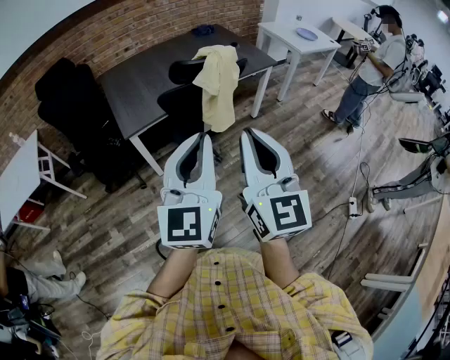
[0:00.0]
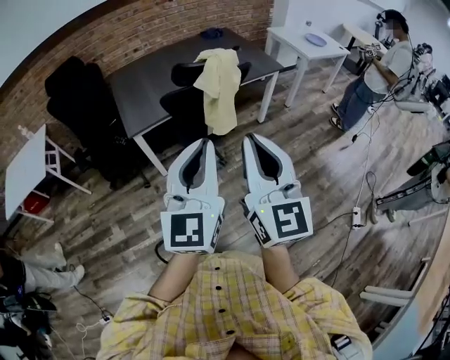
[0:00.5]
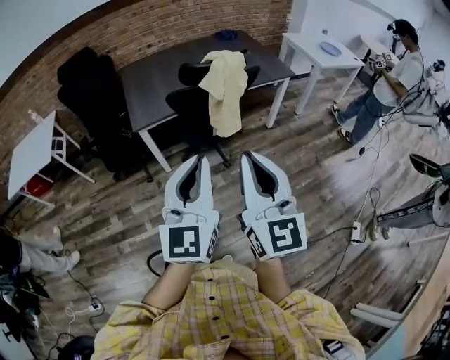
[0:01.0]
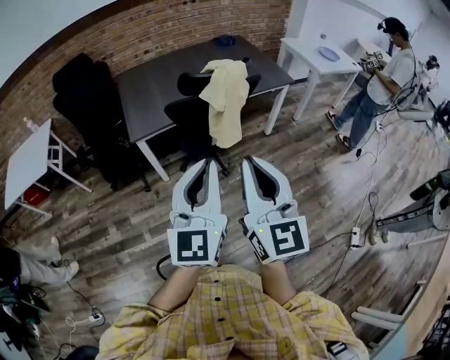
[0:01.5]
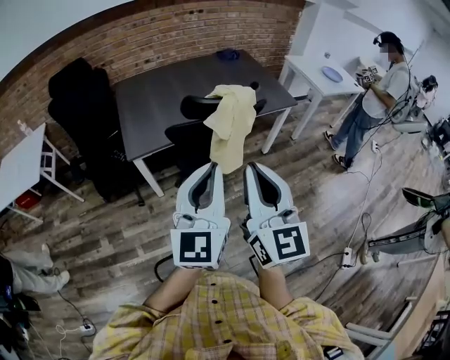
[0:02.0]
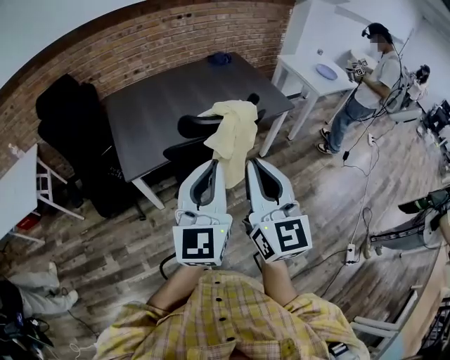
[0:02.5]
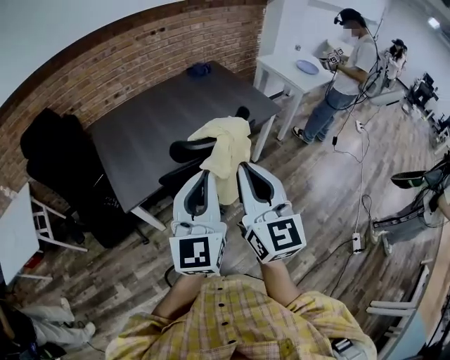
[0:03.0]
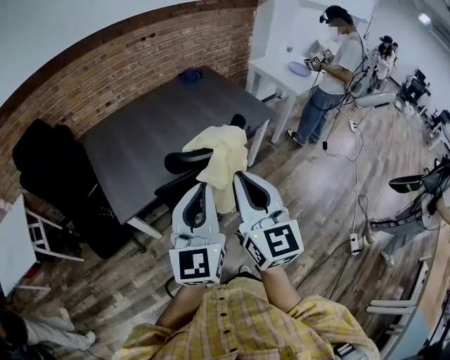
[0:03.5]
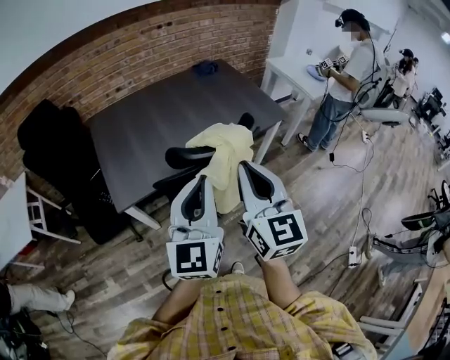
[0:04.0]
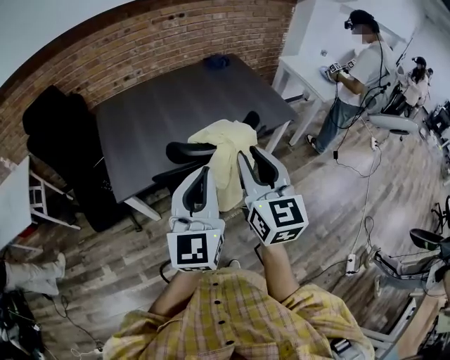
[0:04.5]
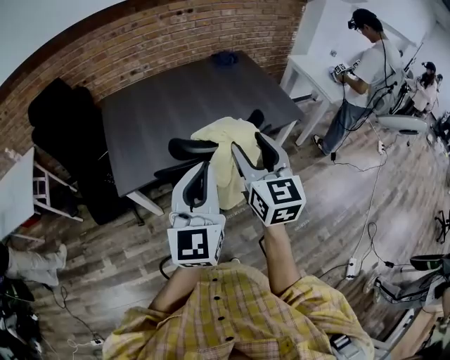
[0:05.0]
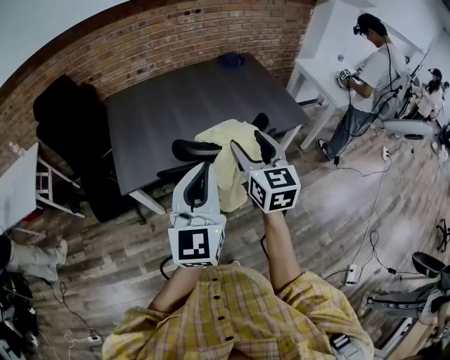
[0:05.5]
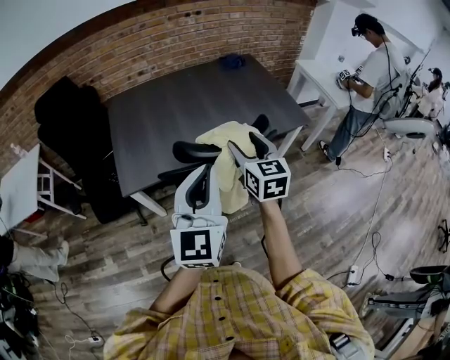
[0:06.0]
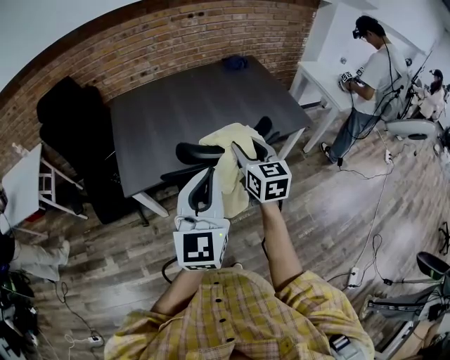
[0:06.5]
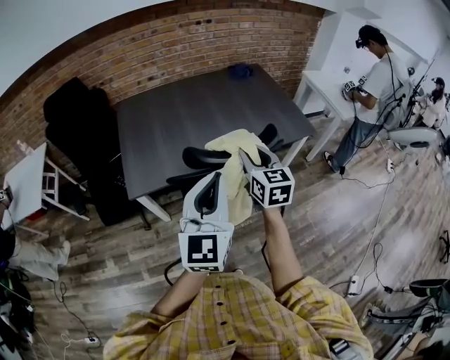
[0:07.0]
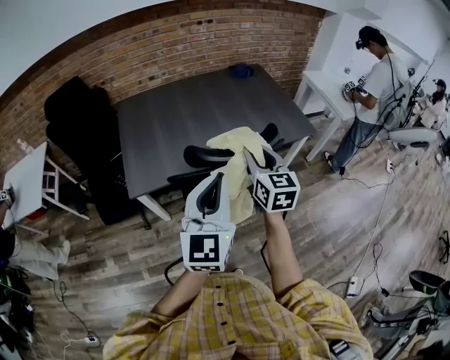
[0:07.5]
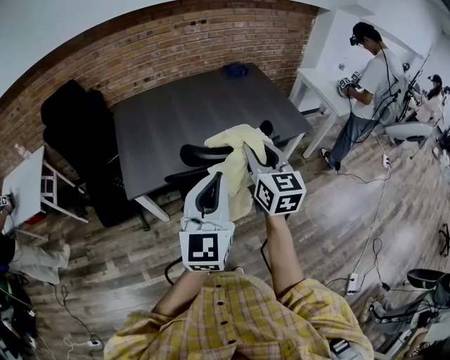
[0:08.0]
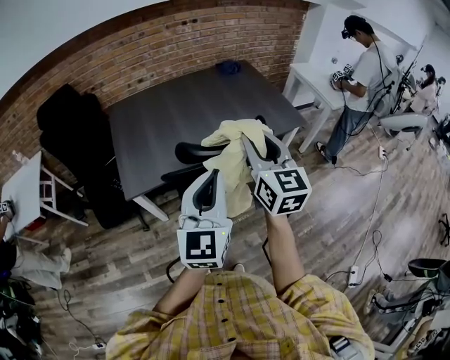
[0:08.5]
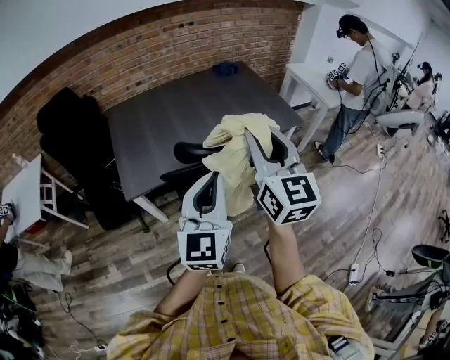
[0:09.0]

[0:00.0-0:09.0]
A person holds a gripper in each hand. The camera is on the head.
0:00.0 to 0:02.0: Both grippers move forward, roughly 10 cm.
0:02.0 to 0:04.5: The grippers both shift forward by some 25 cm.
0:04.5 to 0:07.0: The right gripper shifts some 15 cm downward and forward, and opens, then closes once more.
0:07.0 to 0:09.0: The right gripper is displaced upward and backward by approximately 20 cm, and changes its angle by some 20 degrees.

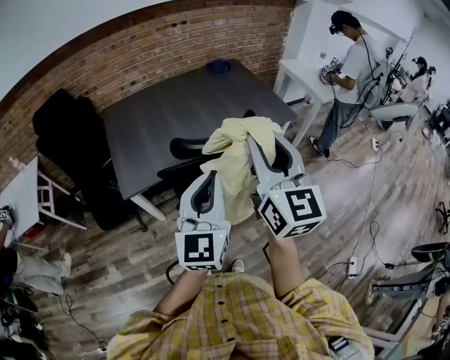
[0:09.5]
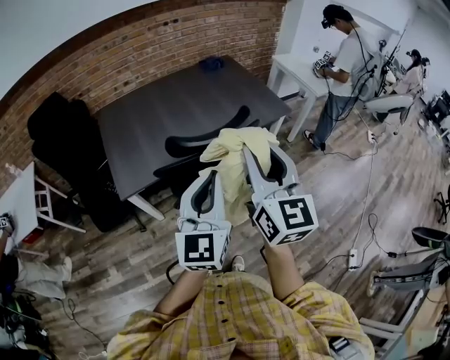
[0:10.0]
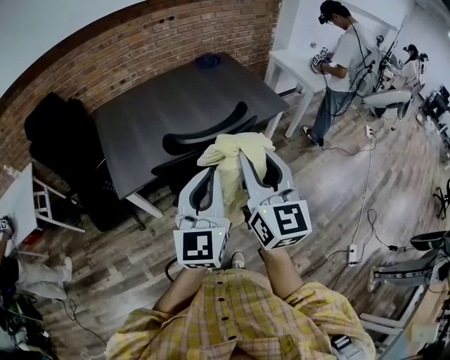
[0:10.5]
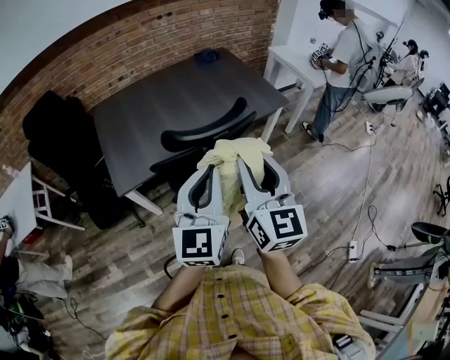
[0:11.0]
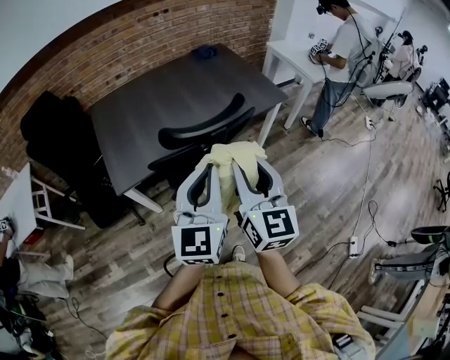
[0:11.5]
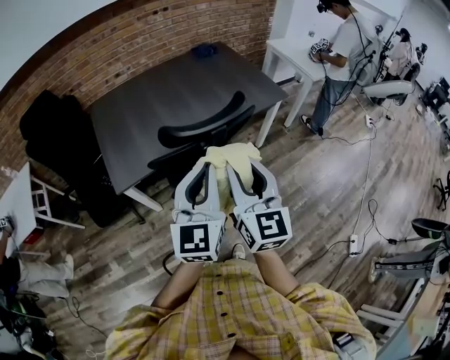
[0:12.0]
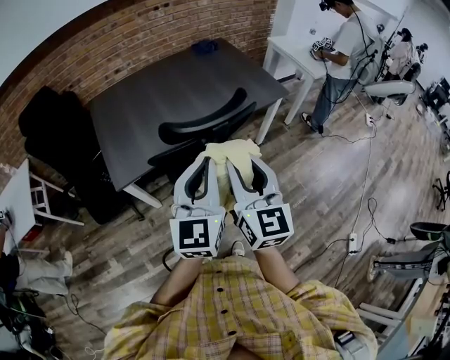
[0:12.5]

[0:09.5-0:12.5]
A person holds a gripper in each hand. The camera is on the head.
0:09.5 to 0:11.0: The right gripper heads downward, covering approximately 5 cm.
0:11.0 to 0:12.5: The grippers stay close to where they were, moving slightly.

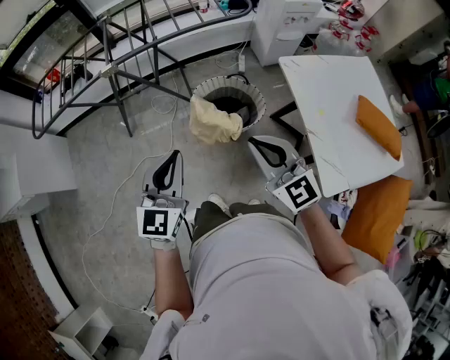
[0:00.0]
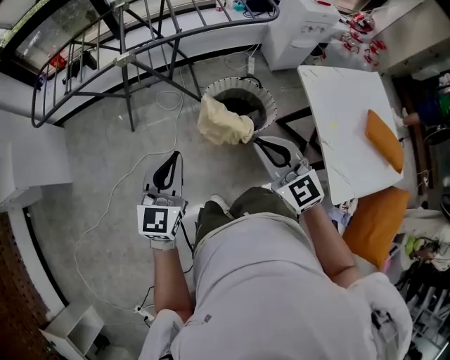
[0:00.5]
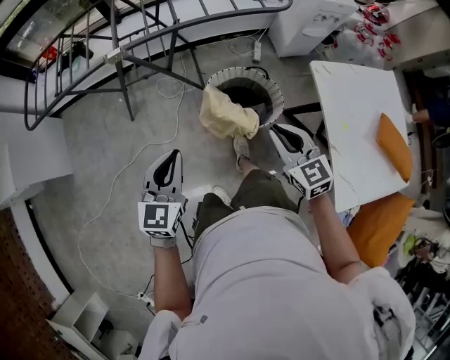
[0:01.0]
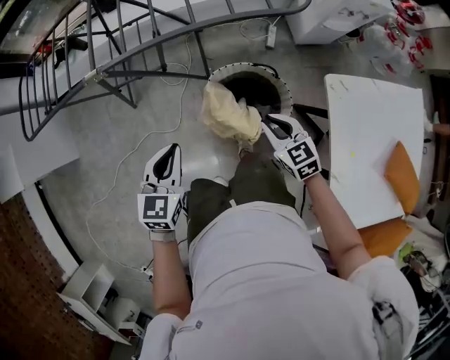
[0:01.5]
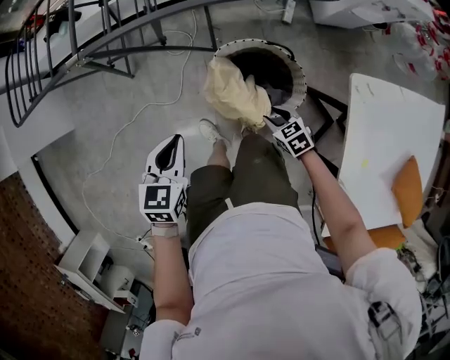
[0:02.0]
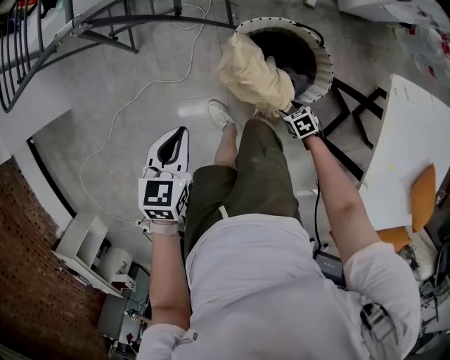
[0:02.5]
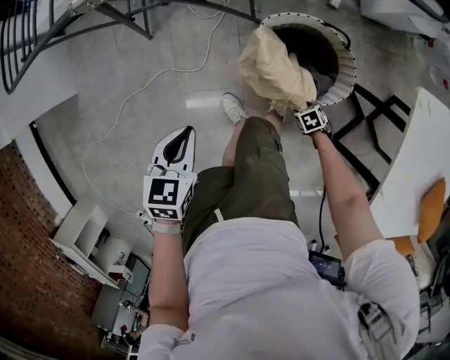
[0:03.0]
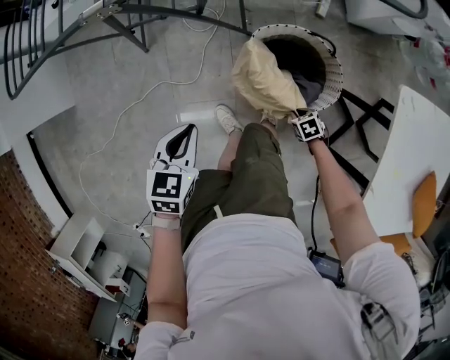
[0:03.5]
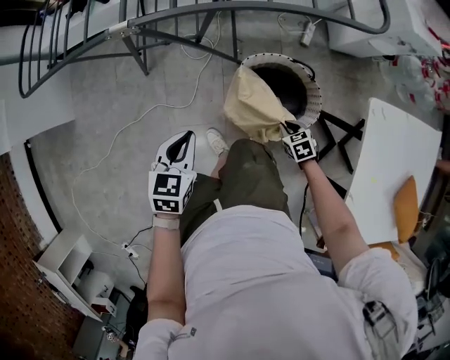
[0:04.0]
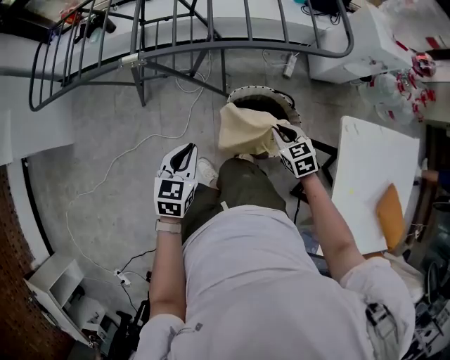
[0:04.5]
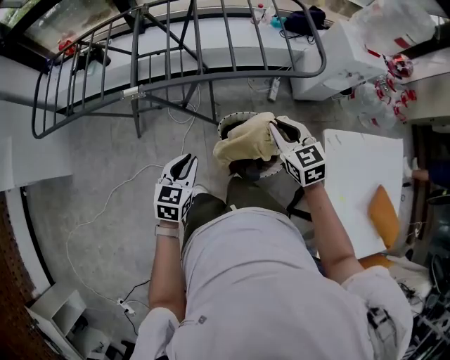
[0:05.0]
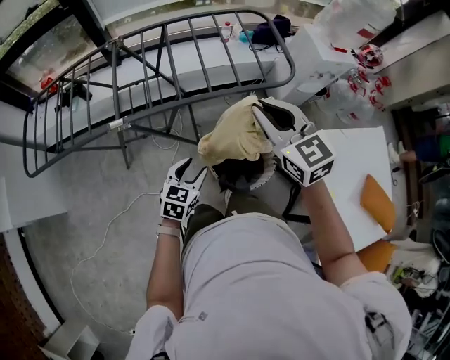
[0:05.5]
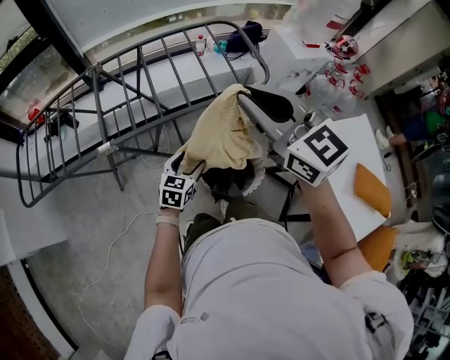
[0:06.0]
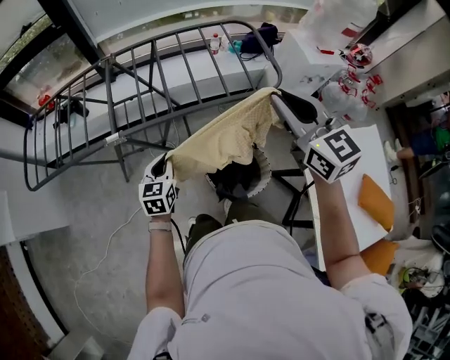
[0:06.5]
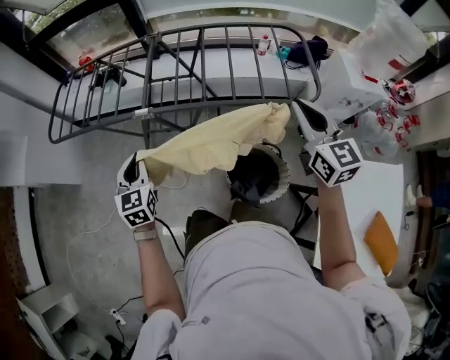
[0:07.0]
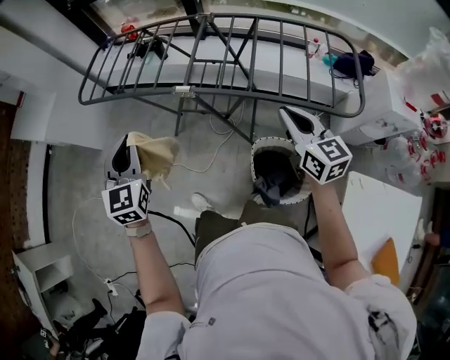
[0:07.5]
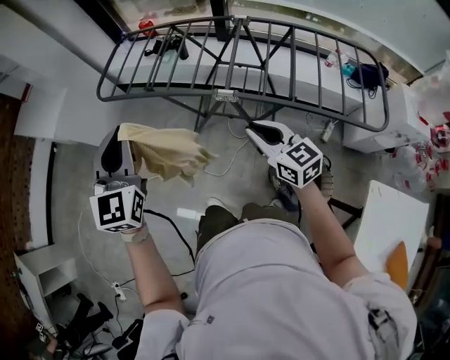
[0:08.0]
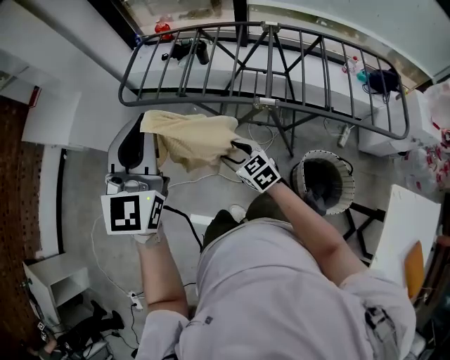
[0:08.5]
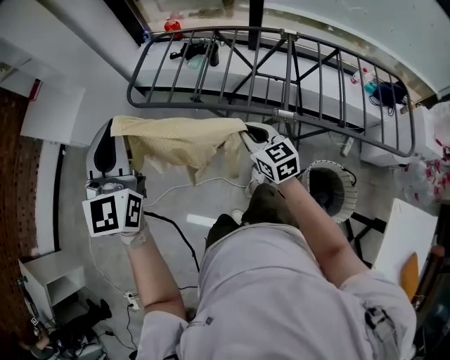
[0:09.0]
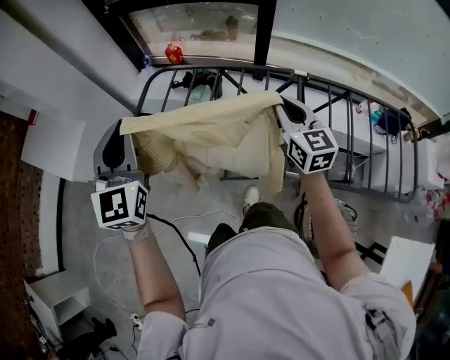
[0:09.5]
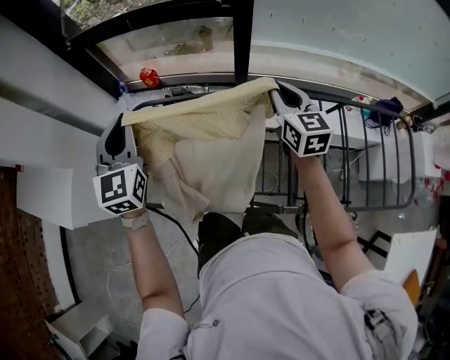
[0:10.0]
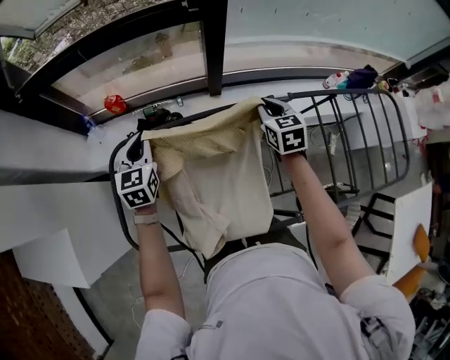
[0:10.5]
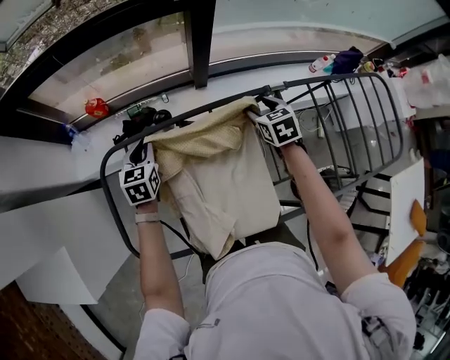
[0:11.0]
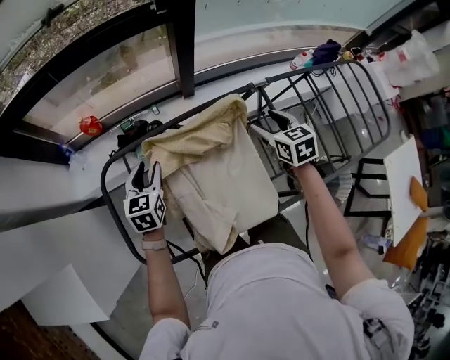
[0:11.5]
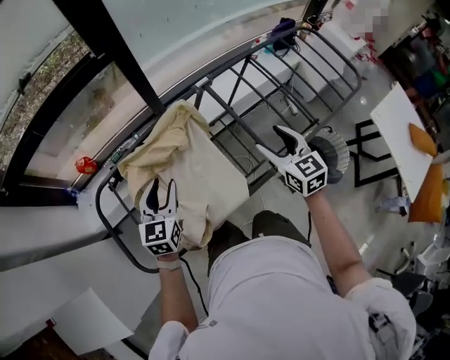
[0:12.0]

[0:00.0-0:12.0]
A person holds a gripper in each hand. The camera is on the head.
0:00.0 to 0:02.0: The right gripper goes approximately 50 cm downward and forward, points its fingers roughly 50 degrees further downward, and opens its fingers. The left gripper is displaced forward and downward by approximately 35 cm, and tilts its fingers approximately 40 degrees downward.
0:02.0 to 0:04.0: The left gripper travels downward and back again, about 10 cm each way, while the right gripper reaches roughly 20 cm downward, then returns, and opens, then closes again.
0:04.0 to 0:06.0: The left gripper travels to the right and forward by approximately 20 cm, rotates about 30 degrees, and opens. Meanwhile the right gripper shifts about 60 cm upward, and points its fingers about 60 degrees further upward.
0:06.0 to 0:08.0: The right gripper changes place by approximately 35 cm, and rotates approximately 40 degrees. Meanwhile the left gripper changes place by some 50 cm, turns by some 60 degrees, and closes.
0:08.0 to 0:10.0: The two grippers travel together, forward, approximately 50 cm. The right gripper rotates about 30 degrees, and opens, then closes once more.
0:10.0 to 0:12.0: The right gripper moves some 25 cm, changes its angle by about 30 degrees, and opens its fingers, while the left gripper is displaced downward by about 20 cm, changes its angle by some 50 degrees, and opens its fingers.

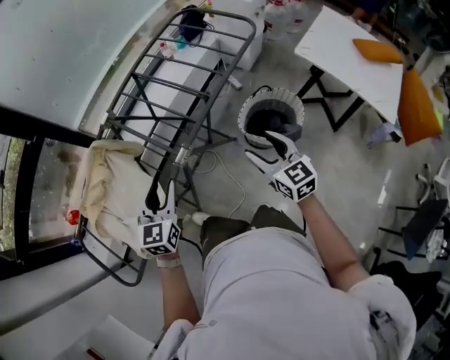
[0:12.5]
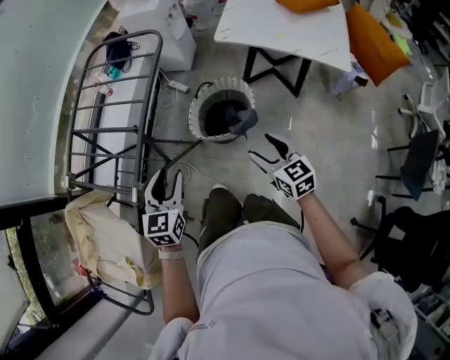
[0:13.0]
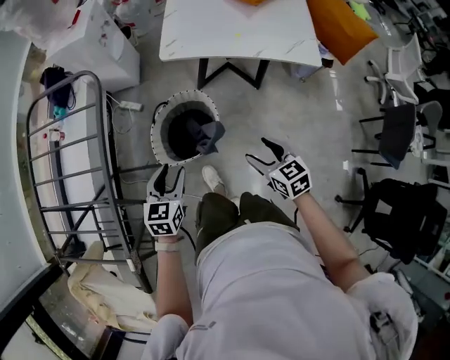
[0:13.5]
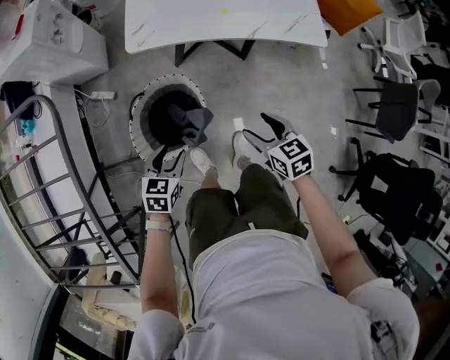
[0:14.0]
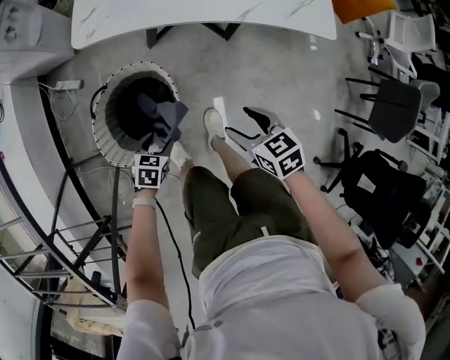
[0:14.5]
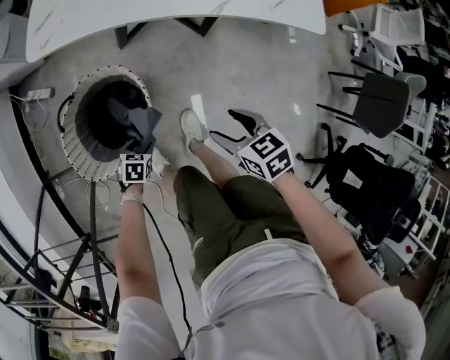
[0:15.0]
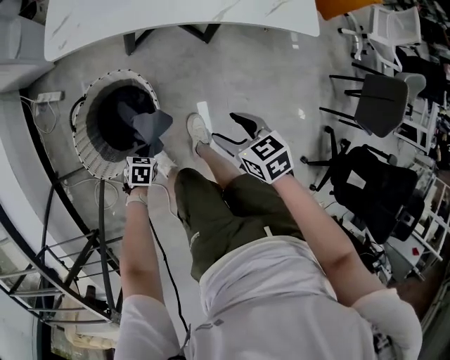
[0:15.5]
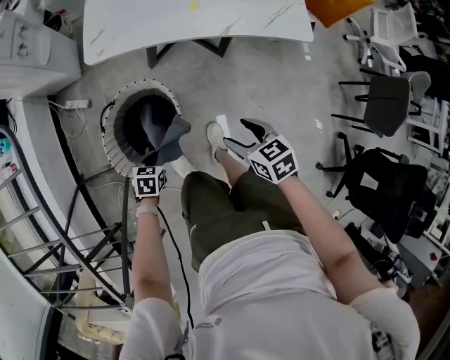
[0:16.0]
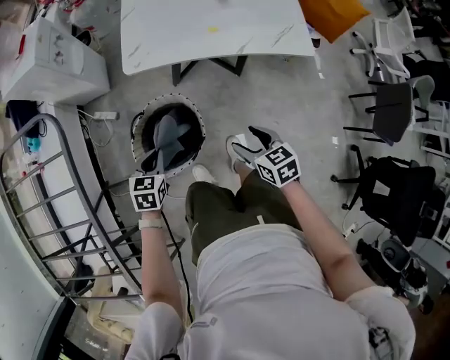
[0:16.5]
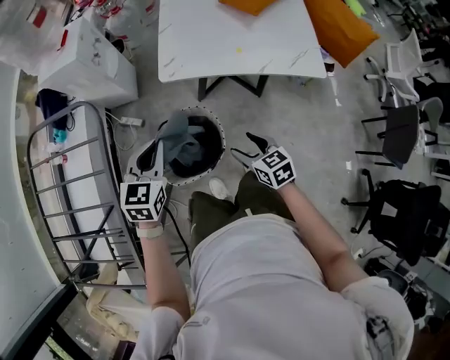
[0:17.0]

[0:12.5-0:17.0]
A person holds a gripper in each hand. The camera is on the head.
0:12.5 to 0:14.5: Both grippers are carried some 50 cm. The left gripper tilts its fingers about 40 degrees downward. Meanwhile the right gripper tilts its fingers some 30 degrees downward.
0:14.5 to 0:17.0: The right gripper travels upward and to the left by some 15 cm. The left gripper moves upward, some 40 cm, rotates roughly 40 degrees, and closes its fingers.
